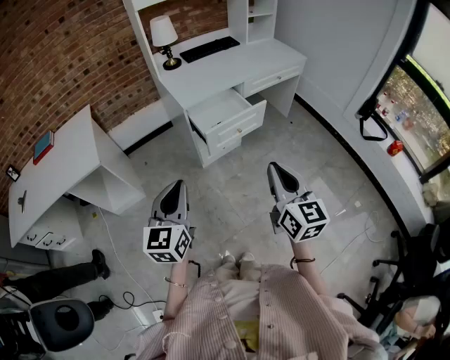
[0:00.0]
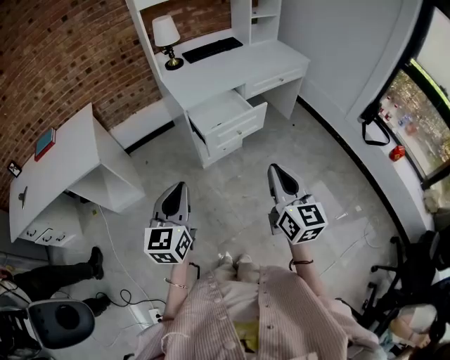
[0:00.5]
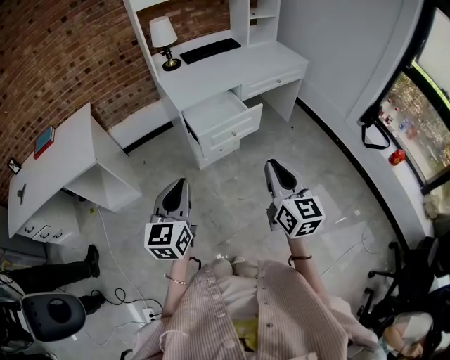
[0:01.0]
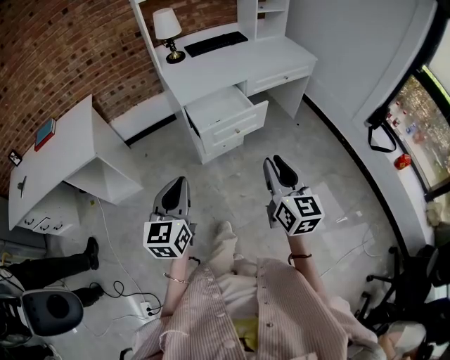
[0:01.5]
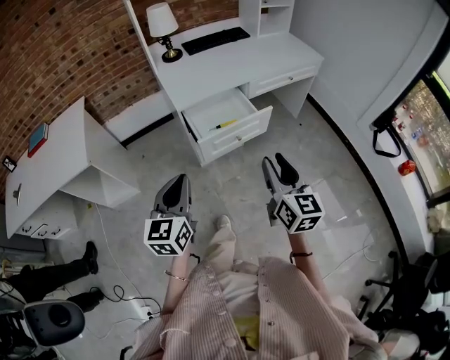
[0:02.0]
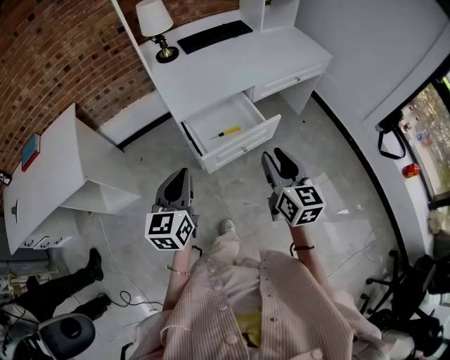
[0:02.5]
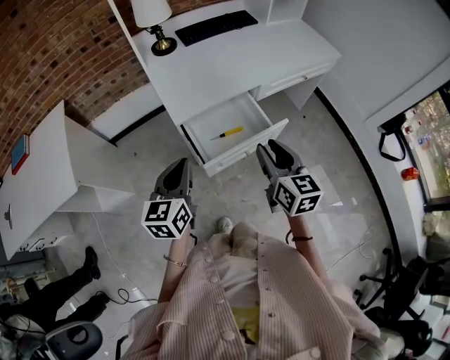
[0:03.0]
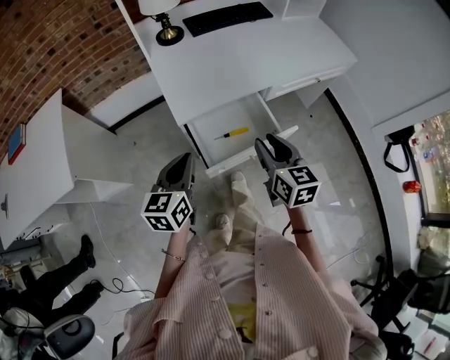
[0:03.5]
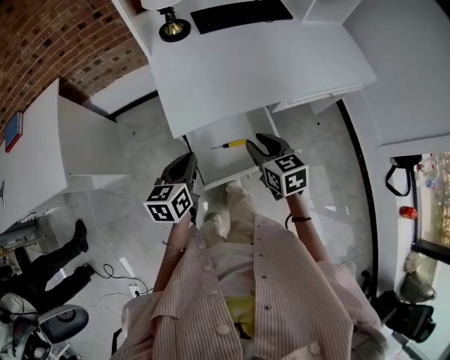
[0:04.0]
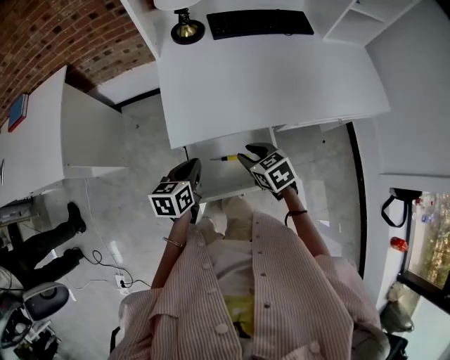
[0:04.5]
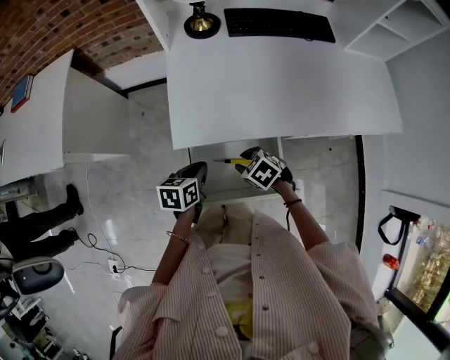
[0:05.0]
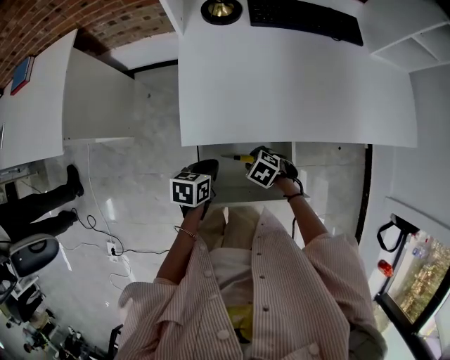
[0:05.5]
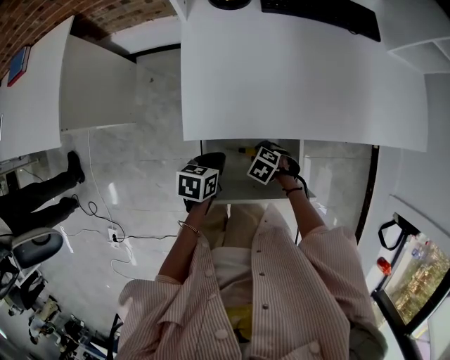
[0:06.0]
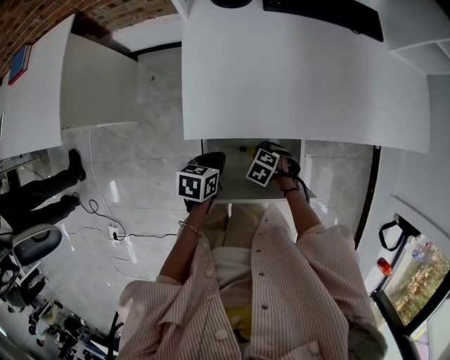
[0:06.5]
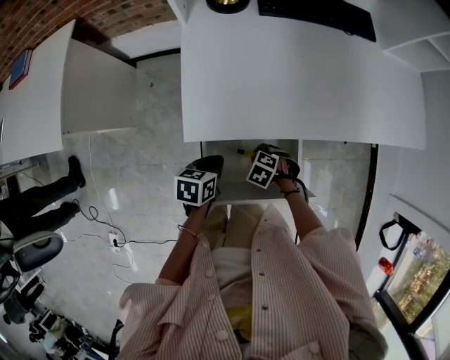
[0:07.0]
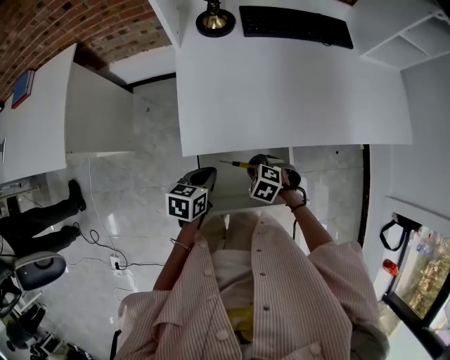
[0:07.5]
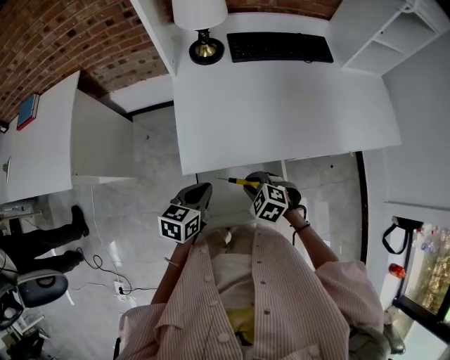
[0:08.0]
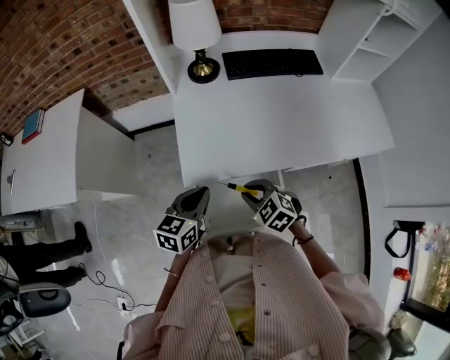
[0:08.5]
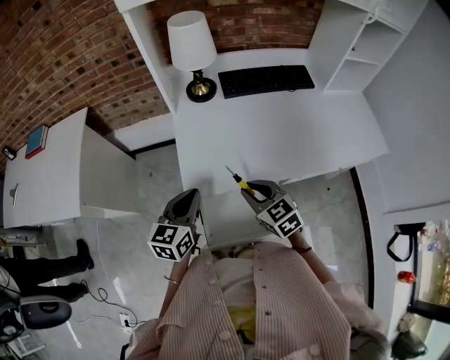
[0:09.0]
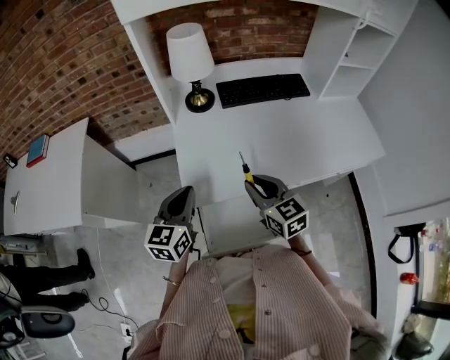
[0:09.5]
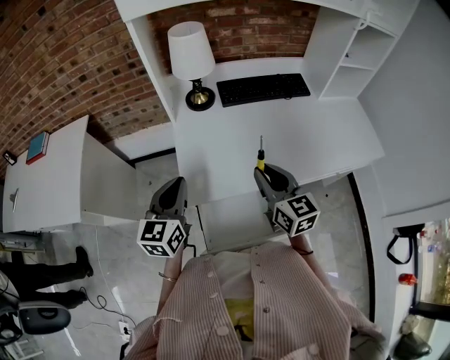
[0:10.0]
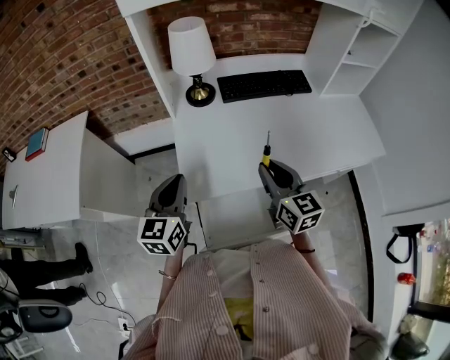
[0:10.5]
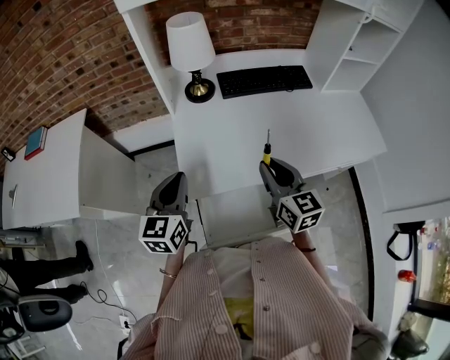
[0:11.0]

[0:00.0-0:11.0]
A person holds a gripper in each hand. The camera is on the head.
0:00.0 to 0:02.0: The right gripper travels forward by roughly 15 cm, and opens up. The left gripper moves forward, to the right and downward, roughly 15 cm.
0:02.0 to 0:03.5: The two grippers go roughly 25 cm forward.
0:03.5 to 0:05.5: The grippers both shift downward by some 25 cm. The right gripper angles its fingers downward, by some 50 degrees; the left gripper tips its fingers downward by approximately 30 degrees.
0:05.5 to 0:07.5: The grippers make only small movements.
0:07.5 to 0:09.0: The grippers both shift upward by about 20 cm. The right gripper angles its fingers upward, by about 40 degrees. The left gripper swivels approximately 30 degrees.
0:09.0 to 0:11.0: The left gripper shifts approximately 5 cm upward. The right gripper travels upward and to the right by approximately 10 cm, and turns by some 30 degrees.

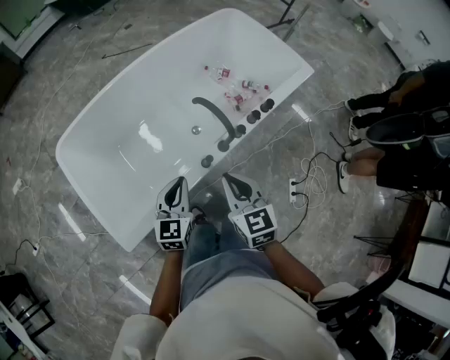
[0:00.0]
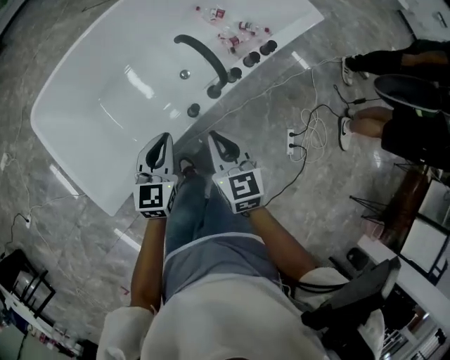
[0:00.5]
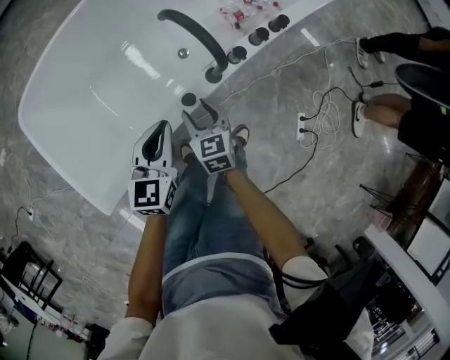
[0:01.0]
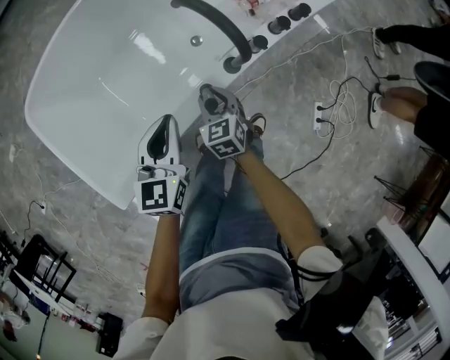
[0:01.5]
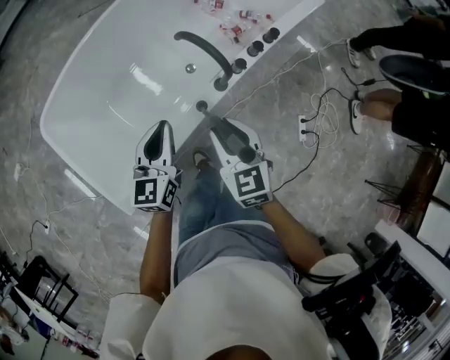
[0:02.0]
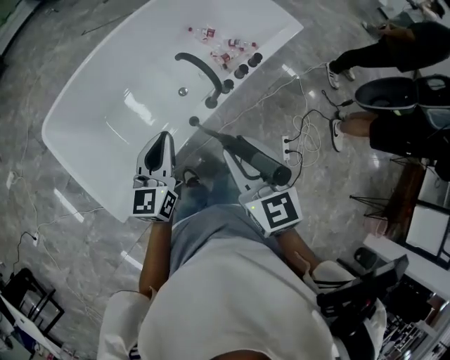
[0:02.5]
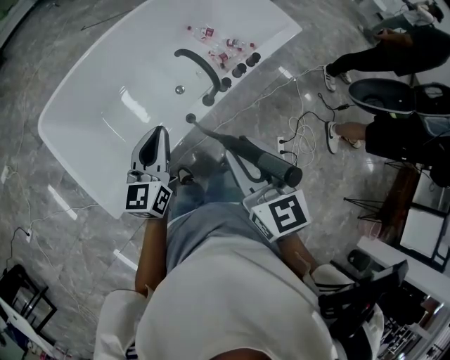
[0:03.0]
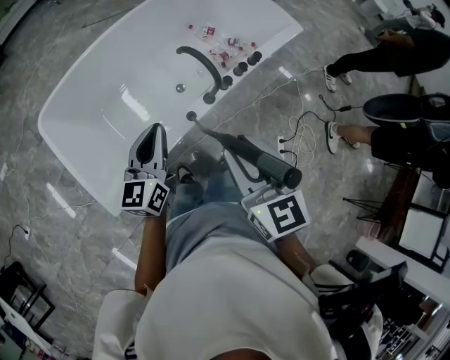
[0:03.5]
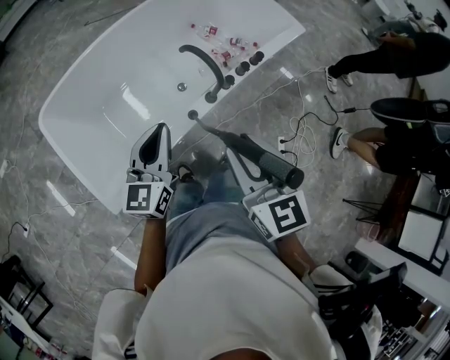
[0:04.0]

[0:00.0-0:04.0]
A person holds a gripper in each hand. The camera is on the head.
0:00.0 to 0:02.0: The left gripper moves forward, some 5 cm, and reaches roughly 30 cm downward, then returns. The right gripper moves approximately 50 cm downward and comes back, and opens up.
0:02.0 to 0:04.0: Both grippers travel together upward and backward, approximately 25 cm.

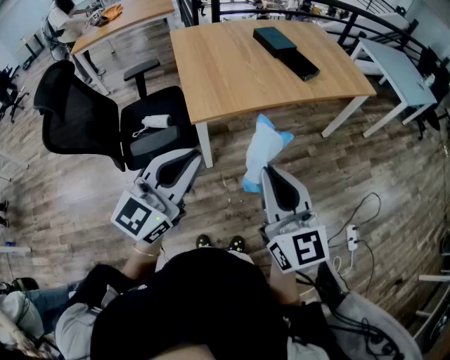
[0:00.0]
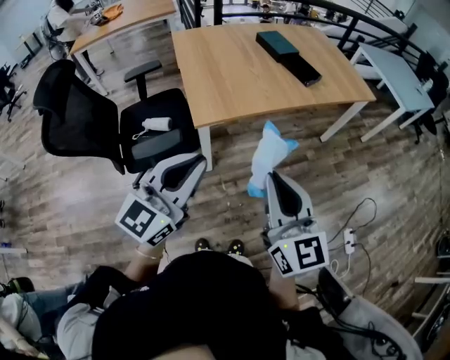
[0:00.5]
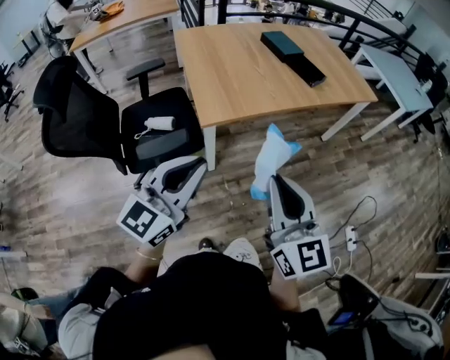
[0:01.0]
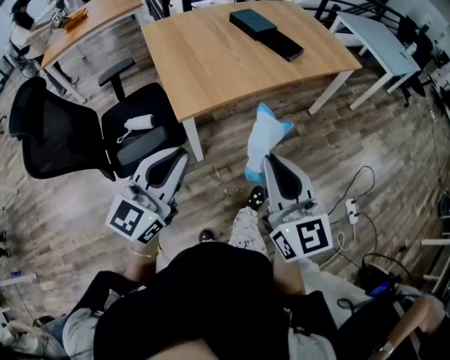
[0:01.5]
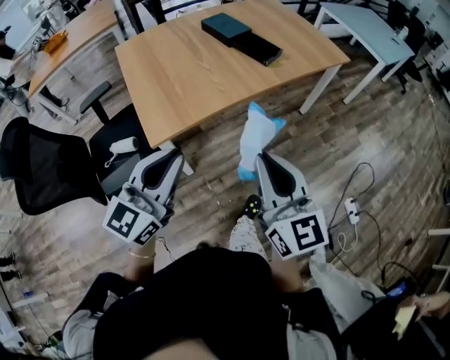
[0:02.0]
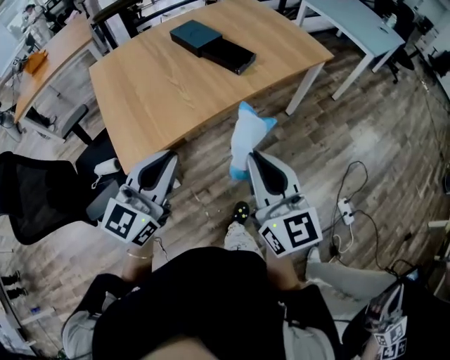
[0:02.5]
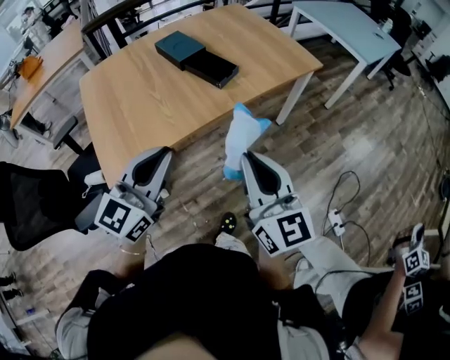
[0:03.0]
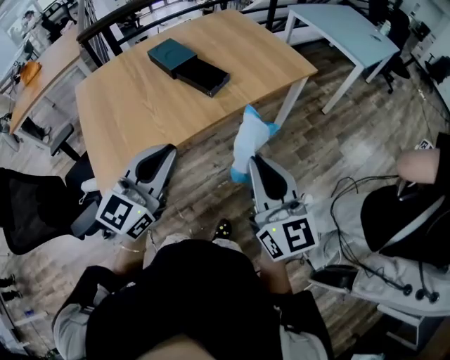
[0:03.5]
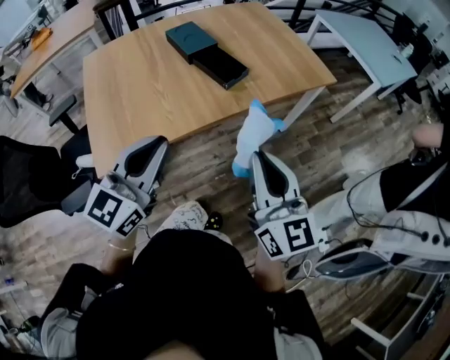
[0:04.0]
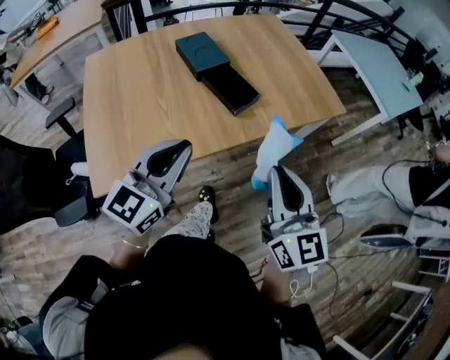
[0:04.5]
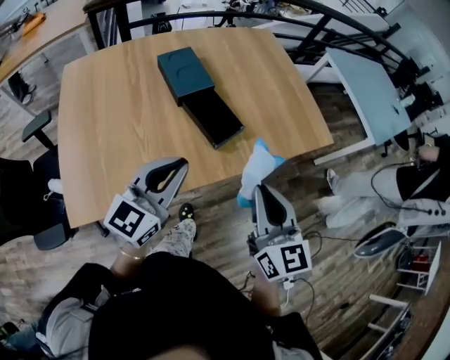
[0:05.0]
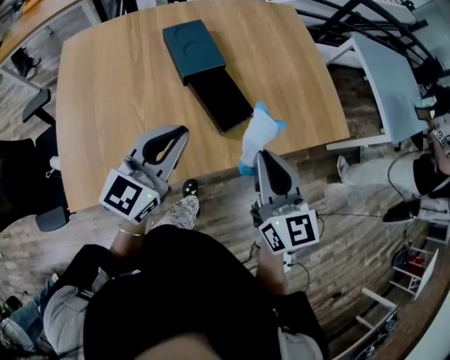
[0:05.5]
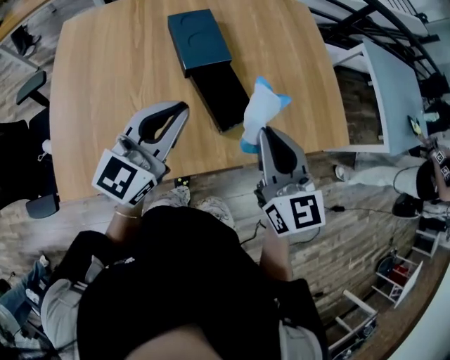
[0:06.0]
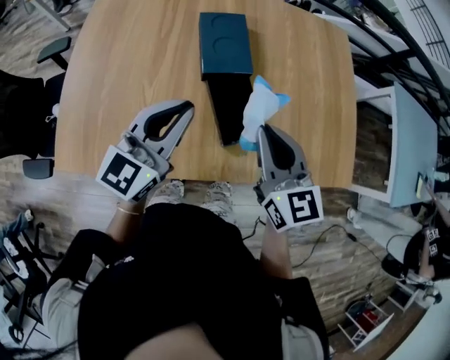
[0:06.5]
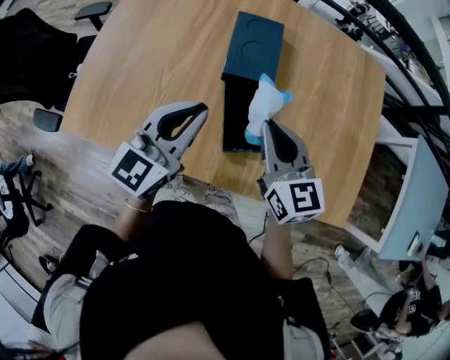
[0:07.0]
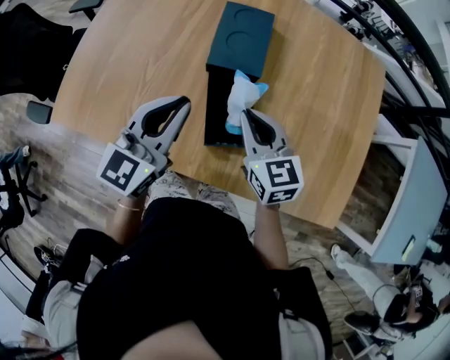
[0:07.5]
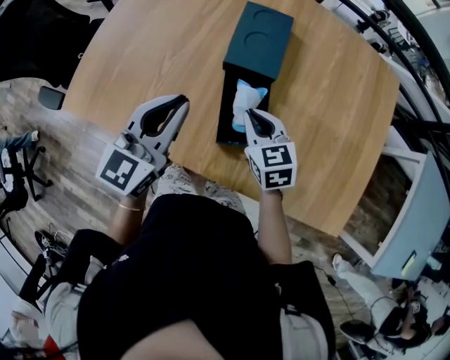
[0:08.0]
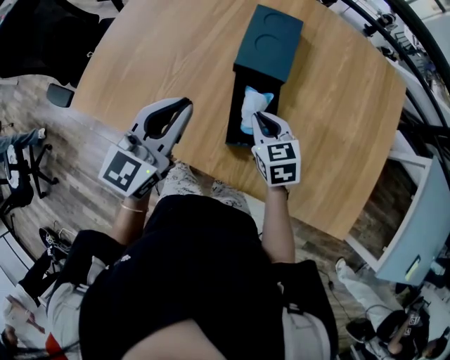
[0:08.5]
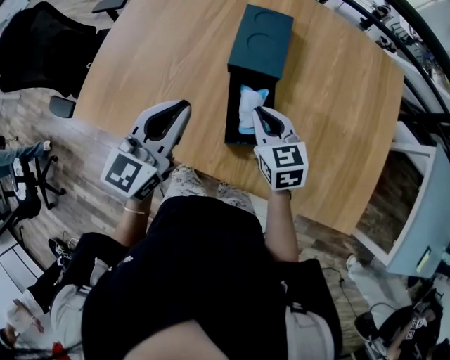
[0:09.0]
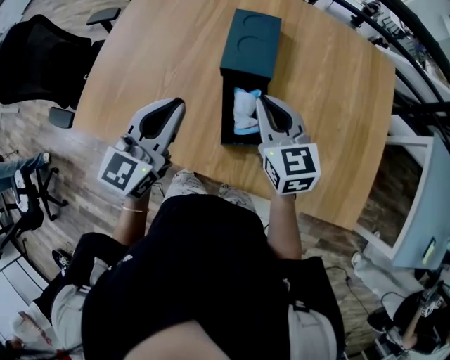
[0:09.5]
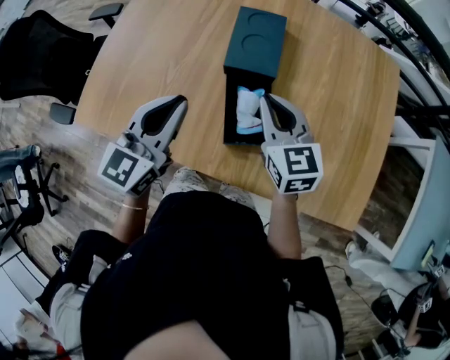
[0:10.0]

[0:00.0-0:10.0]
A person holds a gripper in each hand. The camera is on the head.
0:00.0 to 0:02.0: The right gripper goes some 15 cm forward and to the right. Meanwhile the left gripper shifts about 15 cm forward.
0:02.0 to 0:04.0: The two grippers go about 30 cm forward and to the right.
0:04.0 to 0:06.0: The two grippers go about 40 cm forward. The right gripper swivels some 30 degrees.
0:06.0 to 0:08.0: The left gripper turns by approximately 40 degrees. Meanwhile the right gripper moves downward, roughly 20 cm, and swivels about 40 degrees.
0:08.0 to 0:10.0: The right gripper shifts roughly 10 cm upward.

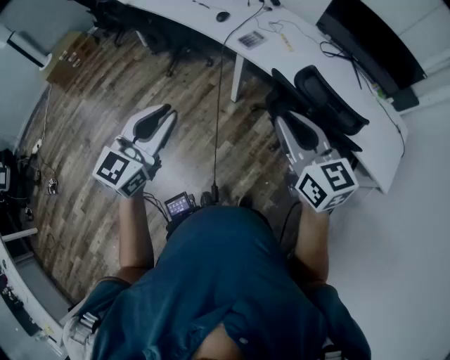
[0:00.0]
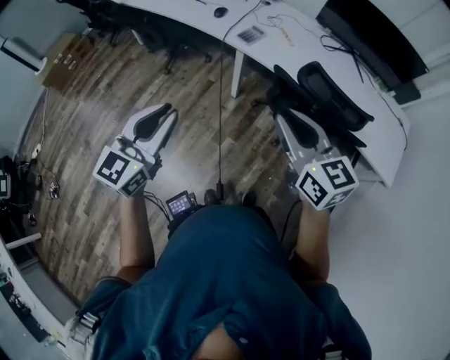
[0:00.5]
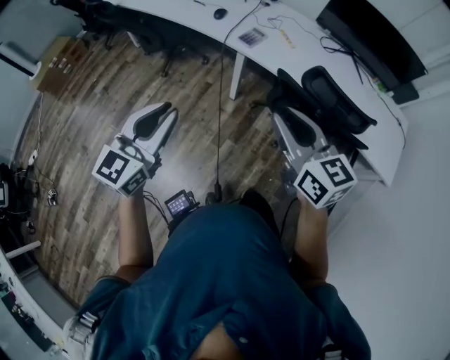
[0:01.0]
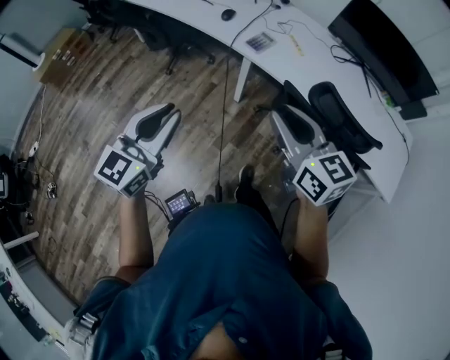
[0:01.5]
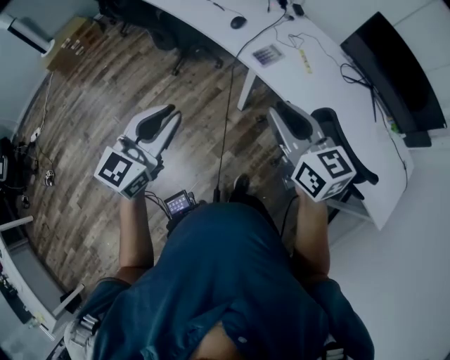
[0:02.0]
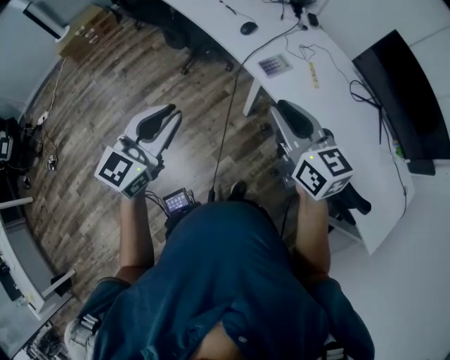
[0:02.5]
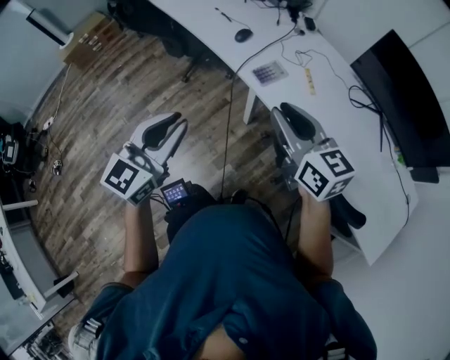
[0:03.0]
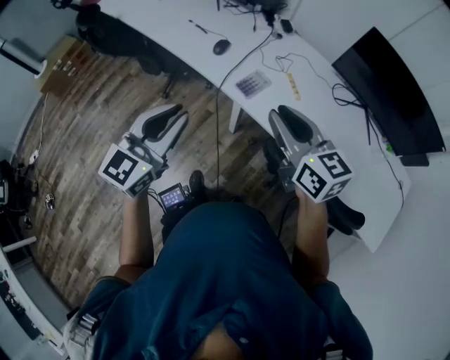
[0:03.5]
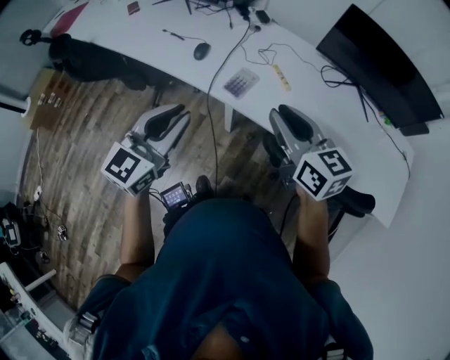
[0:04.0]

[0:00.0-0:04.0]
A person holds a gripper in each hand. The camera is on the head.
0:00.0 to 0:02.0: The grippers both shift forward by about 15 cm.
0:02.0 to 0:04.0: The two grippers go some 20 cm forward and to the right.
